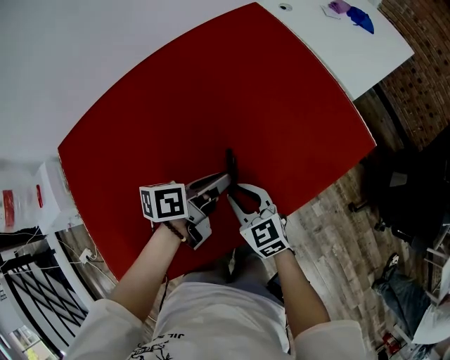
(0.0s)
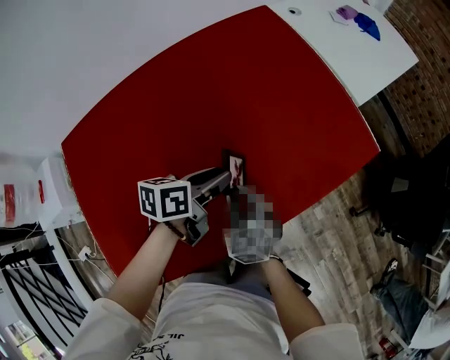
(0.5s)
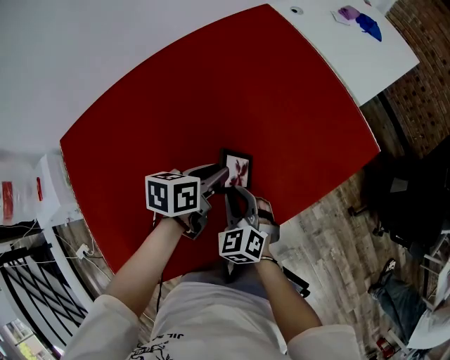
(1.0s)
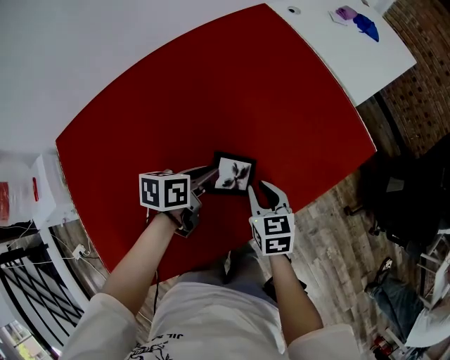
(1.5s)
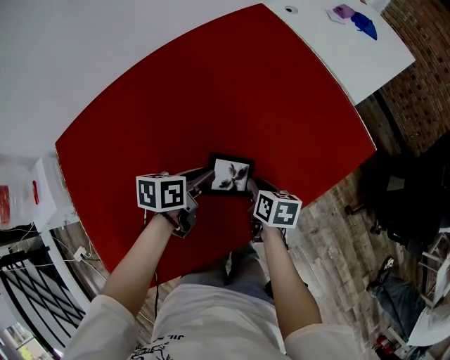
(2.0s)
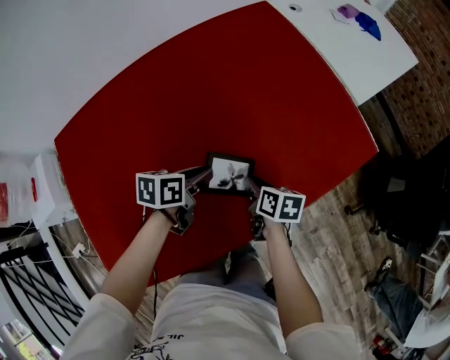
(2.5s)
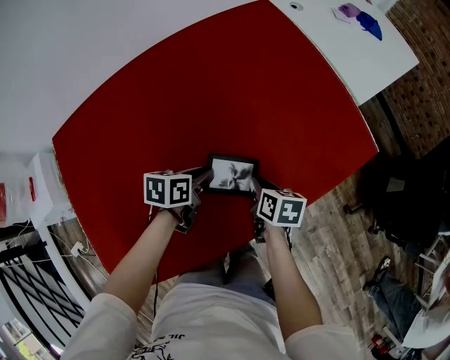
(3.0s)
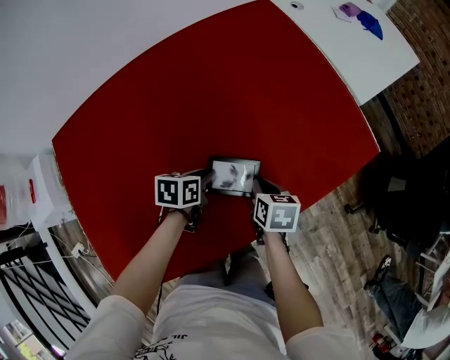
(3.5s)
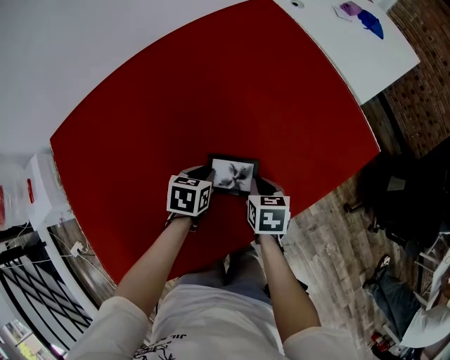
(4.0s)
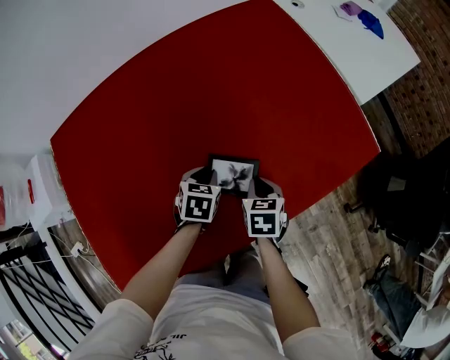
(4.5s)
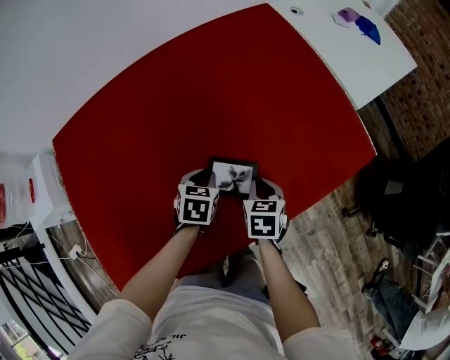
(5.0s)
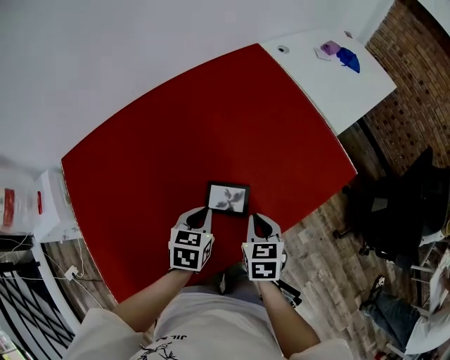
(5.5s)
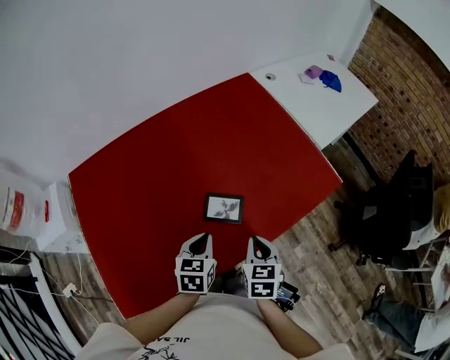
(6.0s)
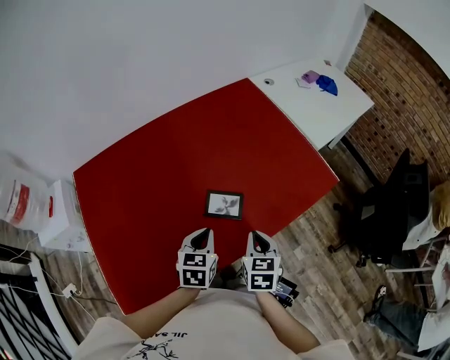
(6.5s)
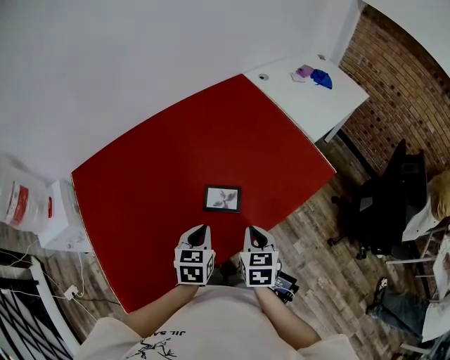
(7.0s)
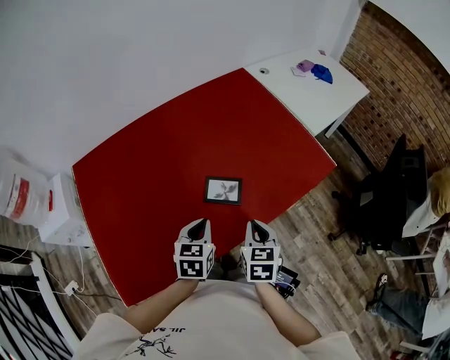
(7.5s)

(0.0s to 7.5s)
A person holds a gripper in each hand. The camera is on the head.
0.0s - 2.0s: The right gripper moves downward and to the right, roughly 10 cm, and rolls clockwise, seen from behind, by approximately 50 degrees, while the left gripper is displaced to the left and downward by approximately 10 cm.
2.0s - 4.0s: The left gripper heads downward, covering about 10 cm, and turns by some 30 degrees.
4.0s - 5.5s: The right gripper heads upward, covering about 10 cm; the left gripper moves upward and backward, roughly 15 cm.
5.5s - 7.5s: Both grippers move backward and upward, approximately 10 cm.

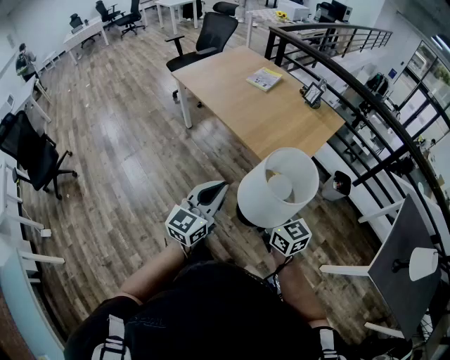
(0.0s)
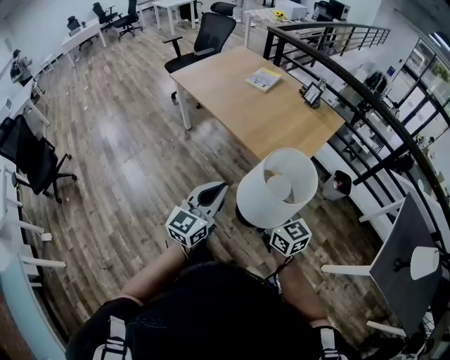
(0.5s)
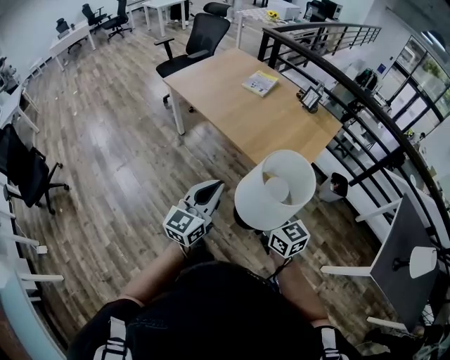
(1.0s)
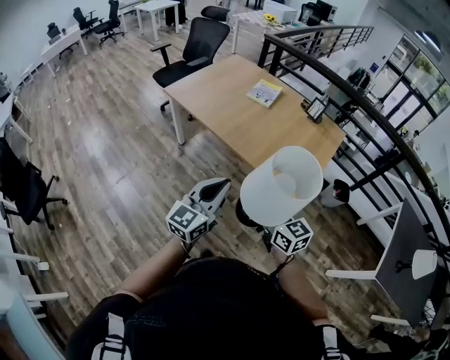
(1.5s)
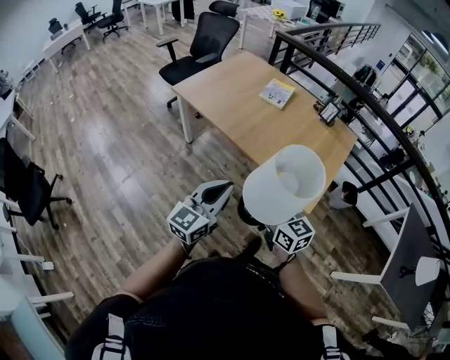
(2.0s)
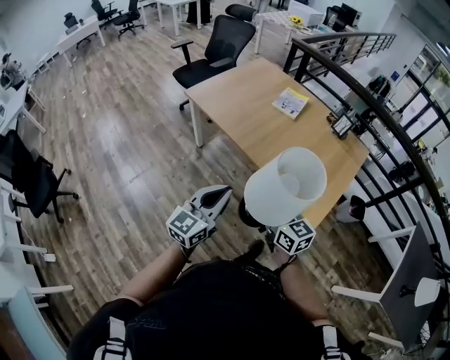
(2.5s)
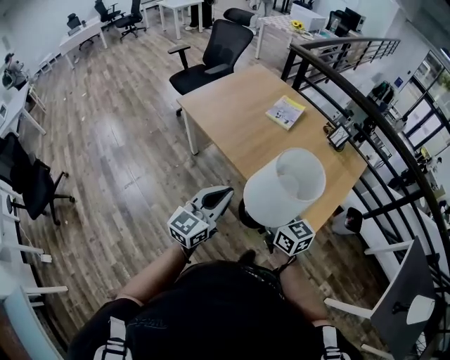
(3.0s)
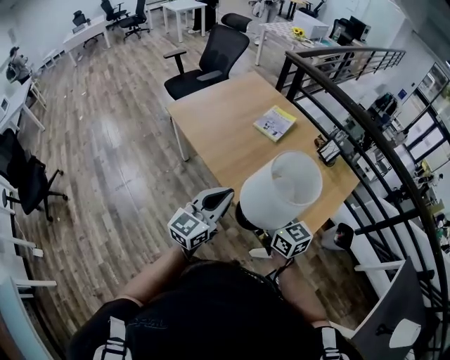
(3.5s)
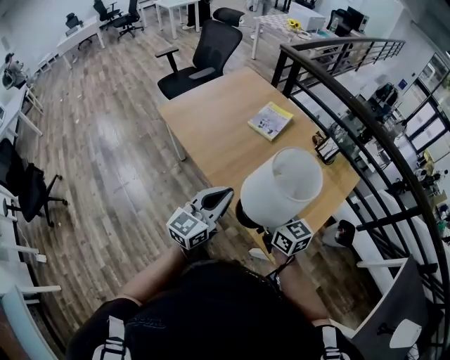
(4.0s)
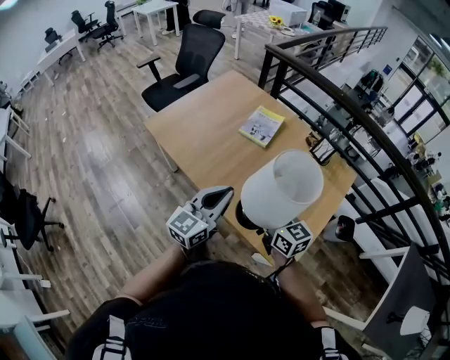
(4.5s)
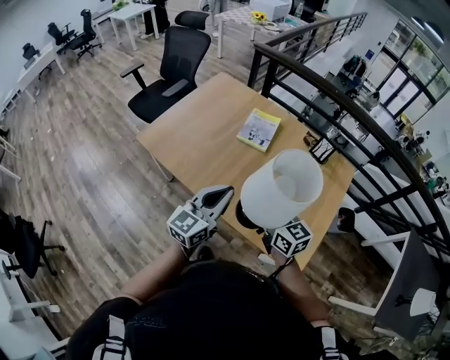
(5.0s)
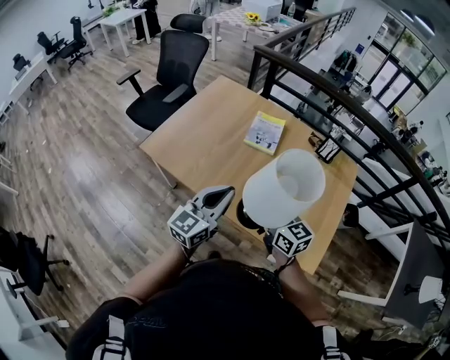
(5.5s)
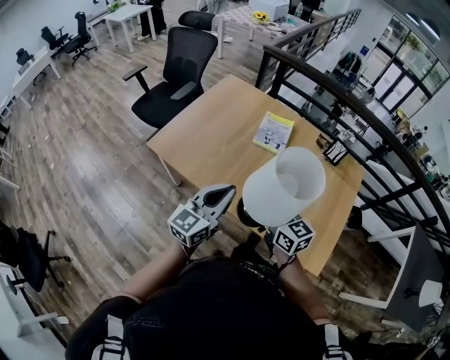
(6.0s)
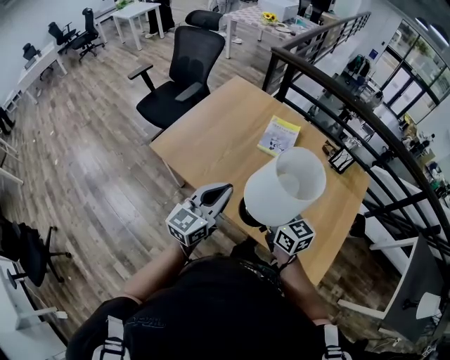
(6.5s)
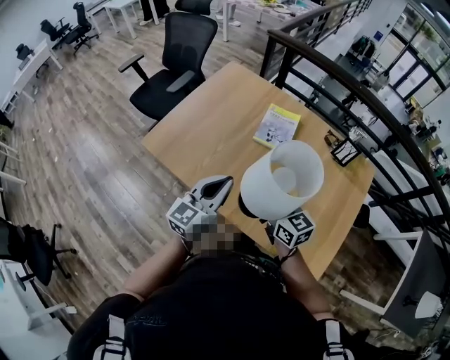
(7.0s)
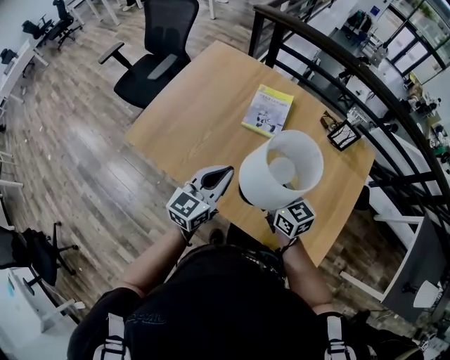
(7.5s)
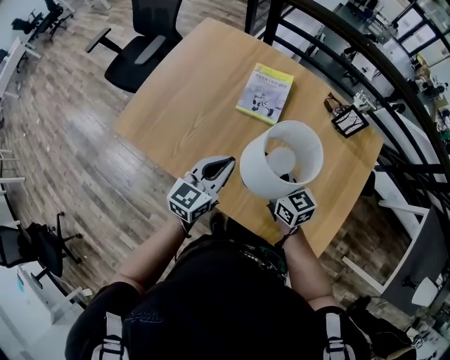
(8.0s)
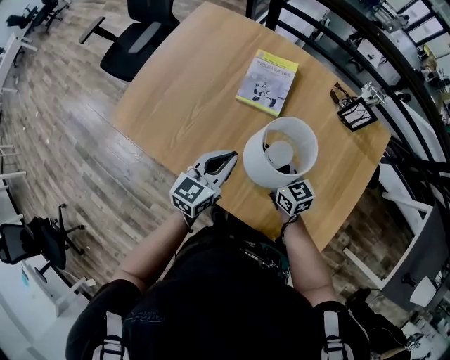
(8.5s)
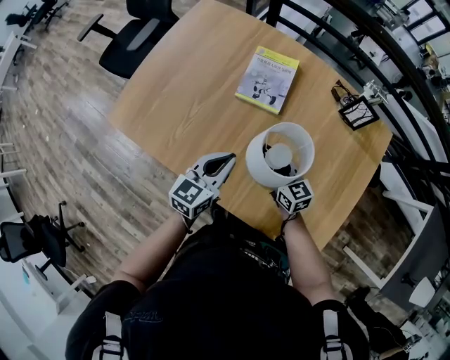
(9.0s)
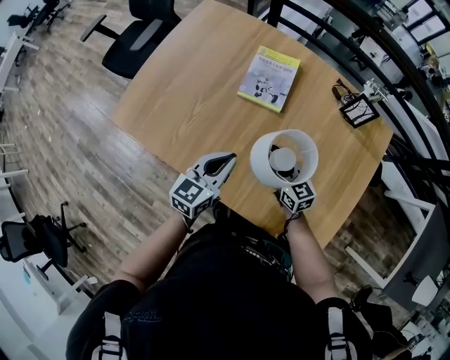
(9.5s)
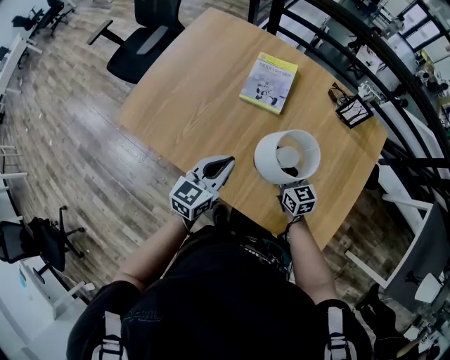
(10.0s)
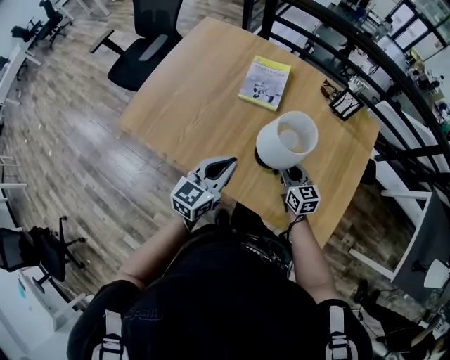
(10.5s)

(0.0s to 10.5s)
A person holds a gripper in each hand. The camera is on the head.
0.0s - 2.0s: Both grippers move forward and to the left, some 30 cm.
2.0s - 4.0s: Both grippers travel together forward and to the right, about 30 cm.
4.0s - 6.5s: The two grippers go about 25 cm to the left and forward.
6.5s - 8.5s: The left gripper is displaced forward, downward and to the right by about 30 cm, and turns by roughly 20 degrees, while the right gripper heads downward, forward and to the right, covering about 30 cm.
8.5s - 10.5s: The right gripper moves backward and to the right, roughly 10 cm. Meanwhile the left gripper moves backward, some 10 cm.

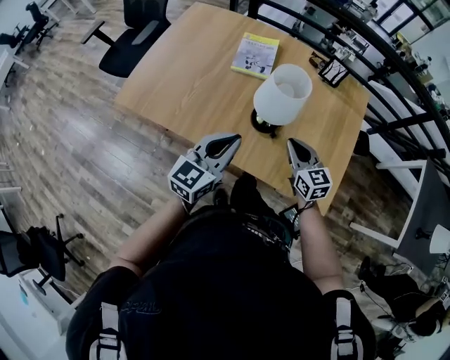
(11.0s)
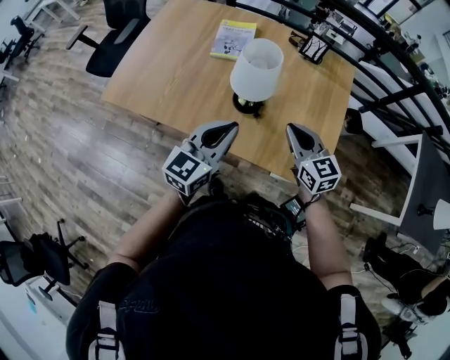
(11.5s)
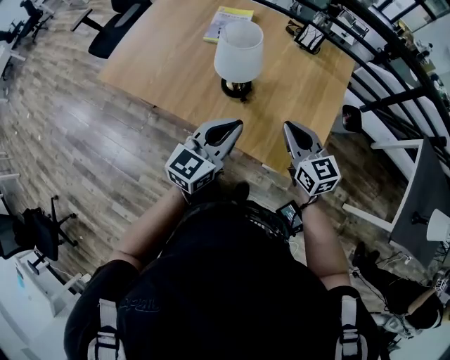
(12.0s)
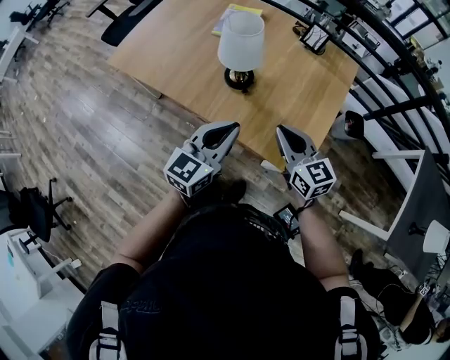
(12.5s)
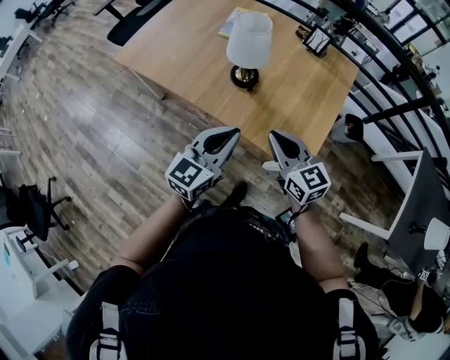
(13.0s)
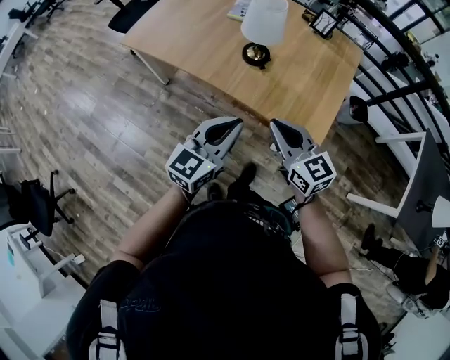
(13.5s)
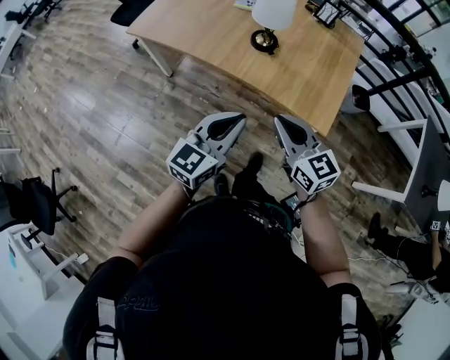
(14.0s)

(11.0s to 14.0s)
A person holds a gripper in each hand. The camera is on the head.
11.0s - 12.5s: The left gripper heads to the right and backward, covering roughly 20 cm. Meanwhile the right gripper goes some 20 cm backward, to the right and upward.
12.5s - 14.0s: Both grippers move backward and to the left, roughly 25 cm.

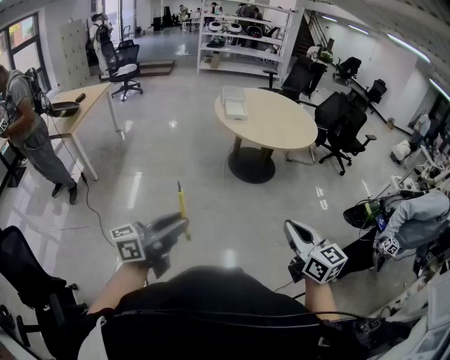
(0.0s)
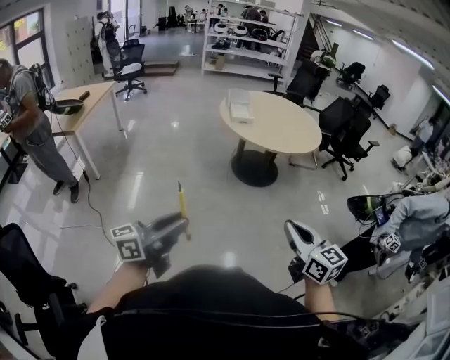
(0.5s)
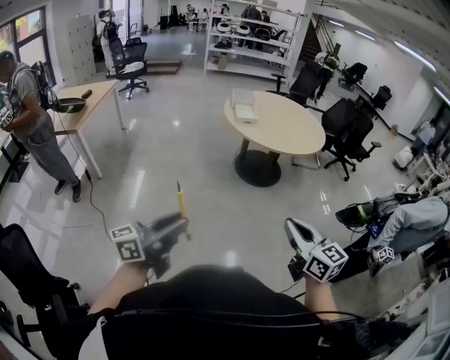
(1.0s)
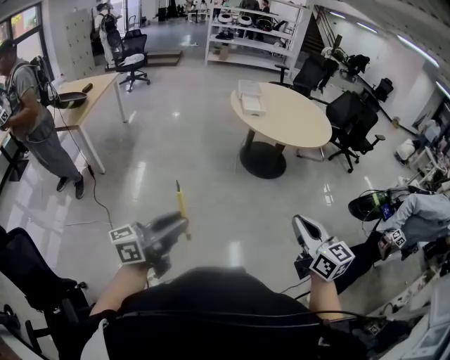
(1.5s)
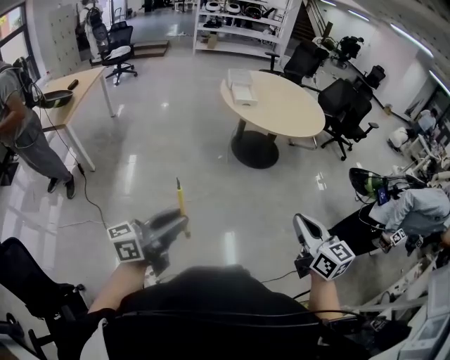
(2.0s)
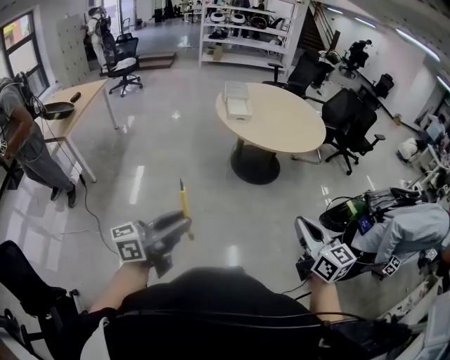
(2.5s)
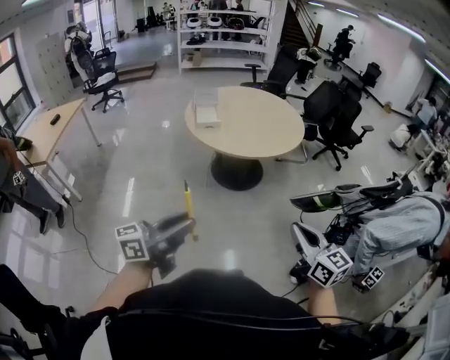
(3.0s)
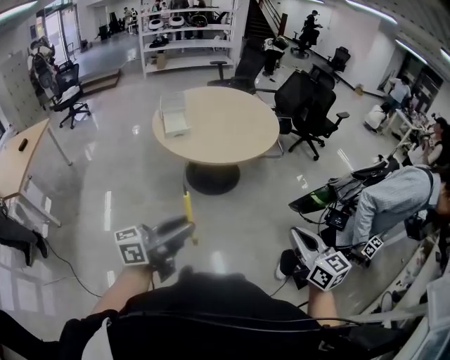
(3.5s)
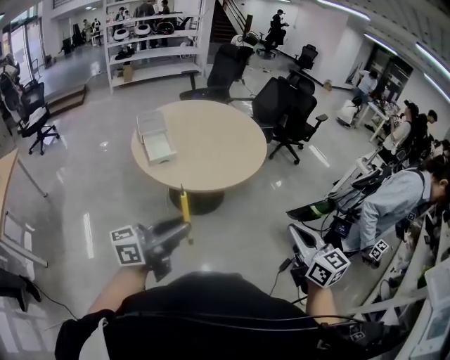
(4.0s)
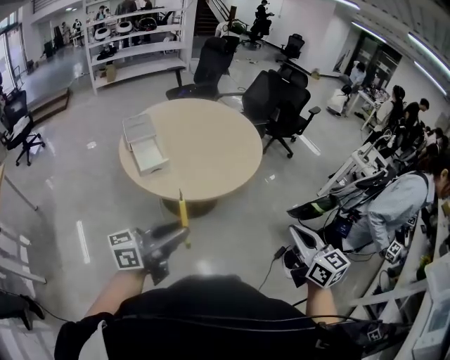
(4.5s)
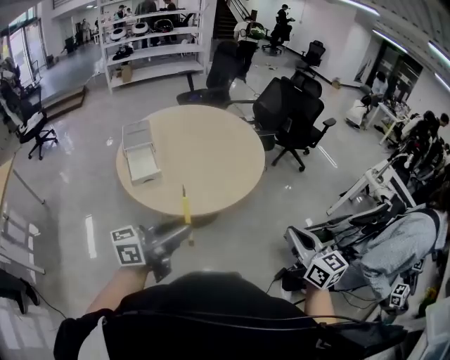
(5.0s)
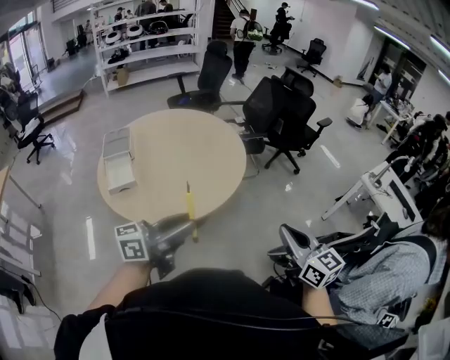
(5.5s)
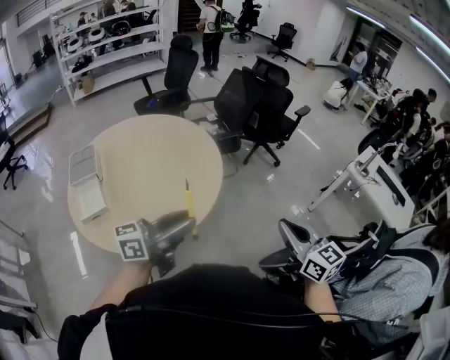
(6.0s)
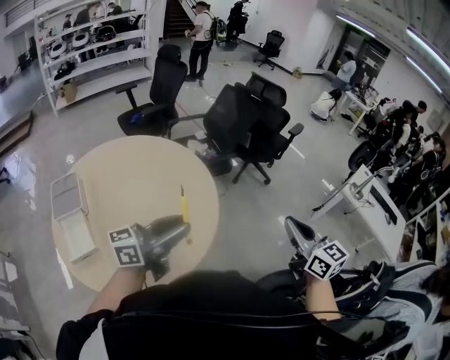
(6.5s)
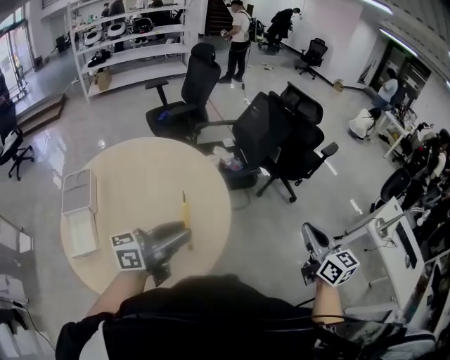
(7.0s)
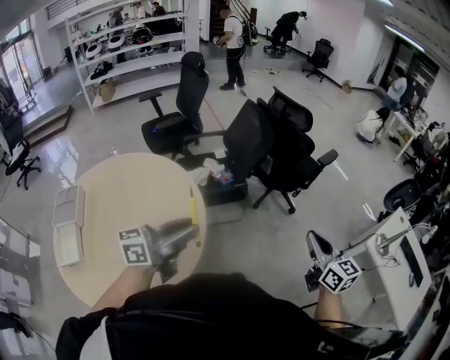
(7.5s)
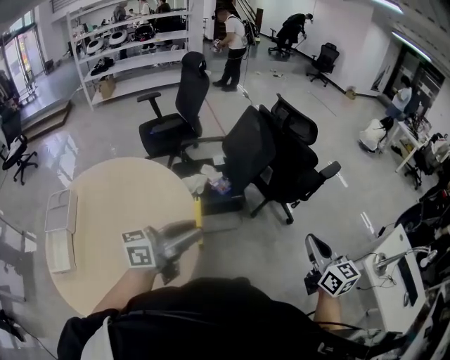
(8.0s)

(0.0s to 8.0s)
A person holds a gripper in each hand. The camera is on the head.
0.0s - 2.0s: Both grippers travel together to the left, approximately 10 cm.
2.0s - 4.0s: The two grippers travel together, forward, roughly 50 cm. The left gripper turns by about 20 degrees.
4.0s - 6.0s: Both grippers are carried forward and to the right, roughly 50 cm.
6.0s - 8.0s: The two grippers travel together, forward, approximately 50 cm.
